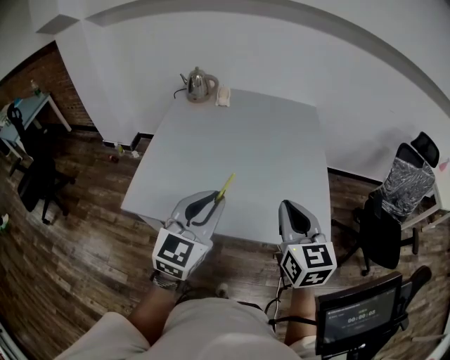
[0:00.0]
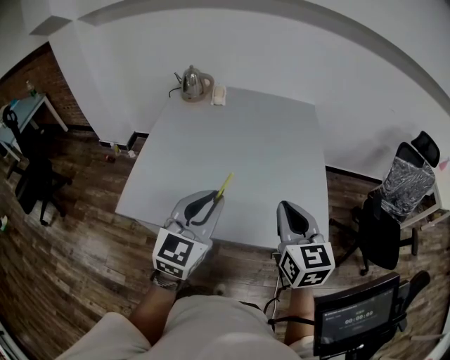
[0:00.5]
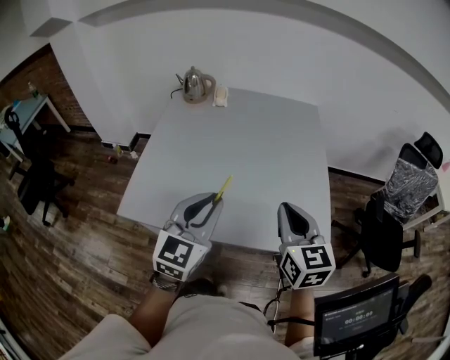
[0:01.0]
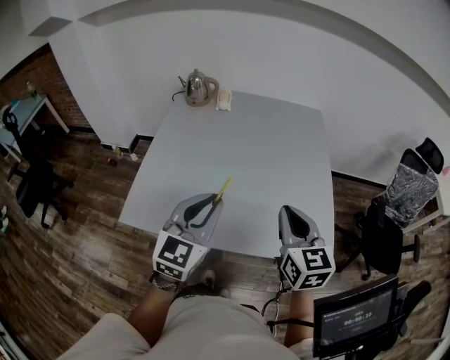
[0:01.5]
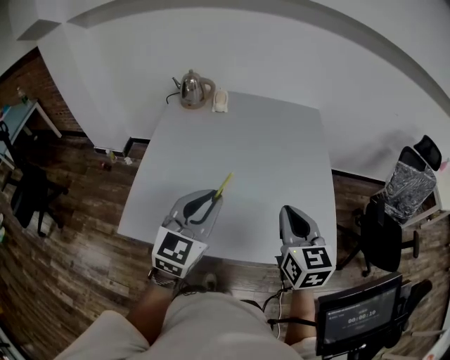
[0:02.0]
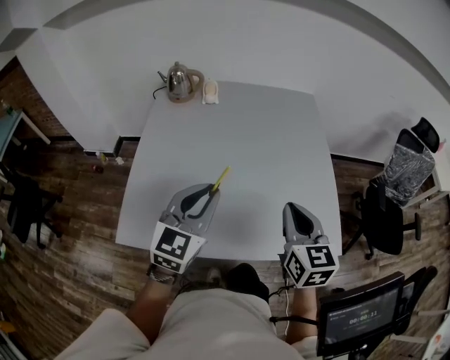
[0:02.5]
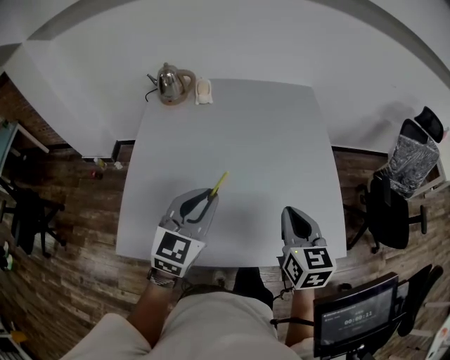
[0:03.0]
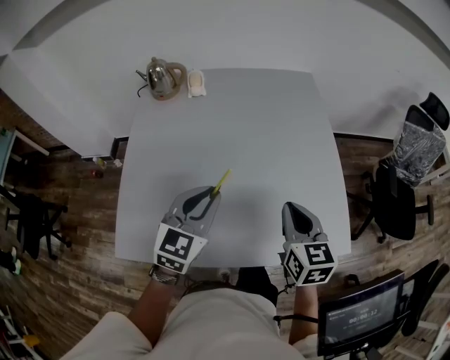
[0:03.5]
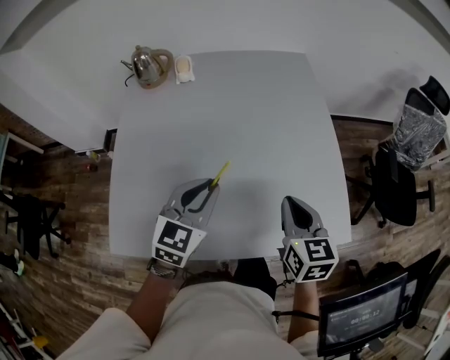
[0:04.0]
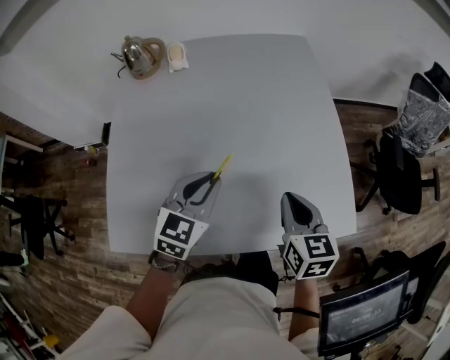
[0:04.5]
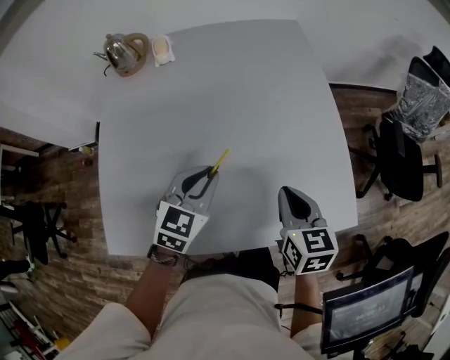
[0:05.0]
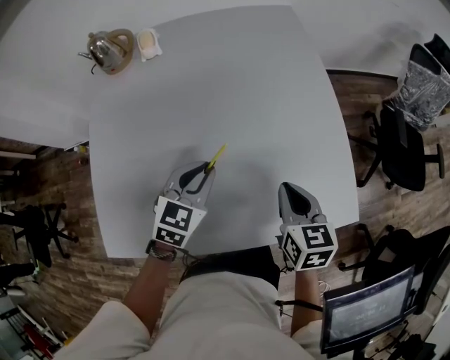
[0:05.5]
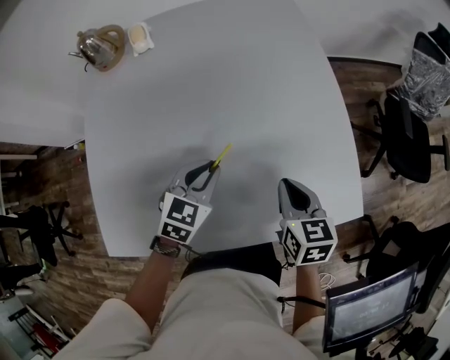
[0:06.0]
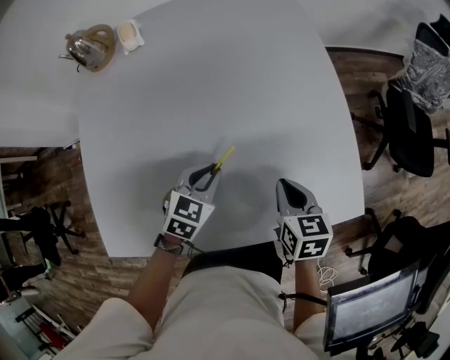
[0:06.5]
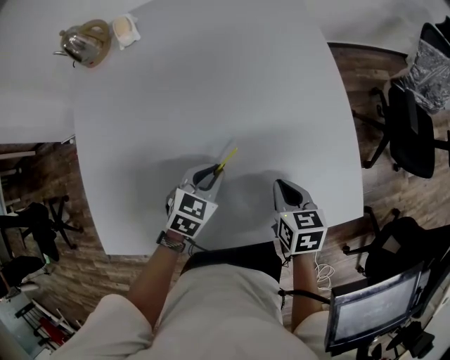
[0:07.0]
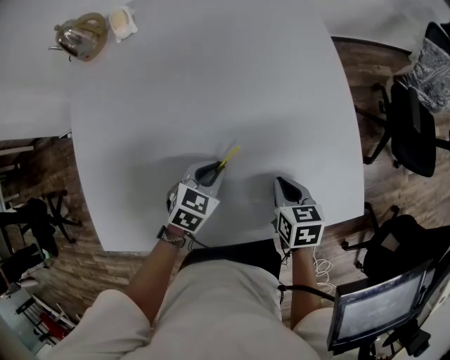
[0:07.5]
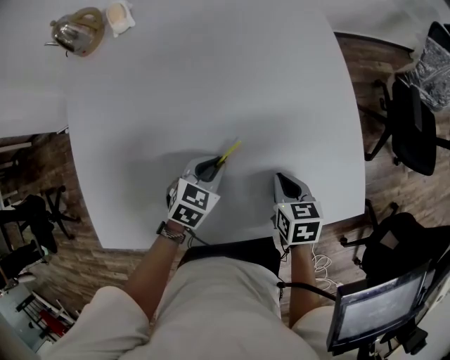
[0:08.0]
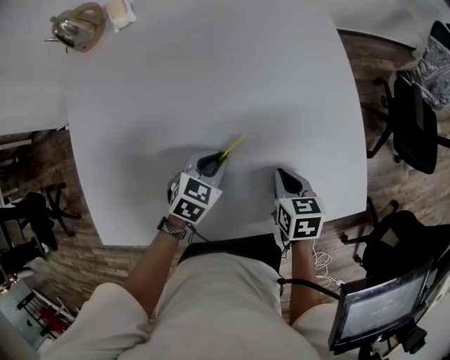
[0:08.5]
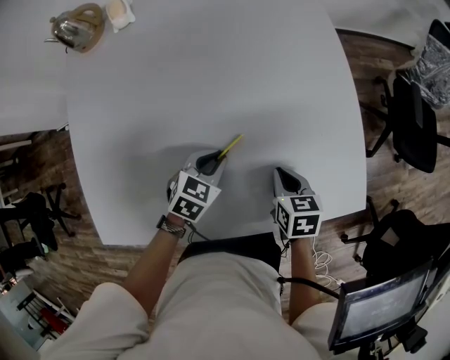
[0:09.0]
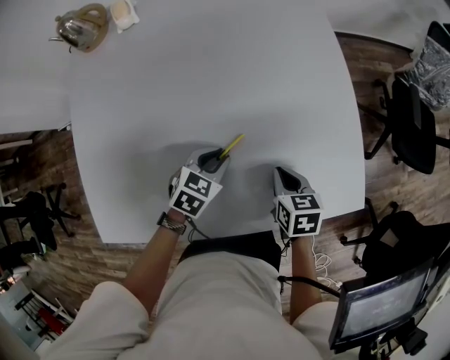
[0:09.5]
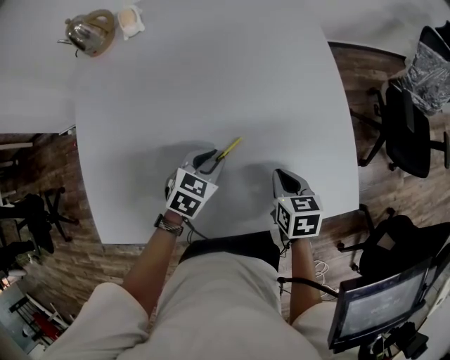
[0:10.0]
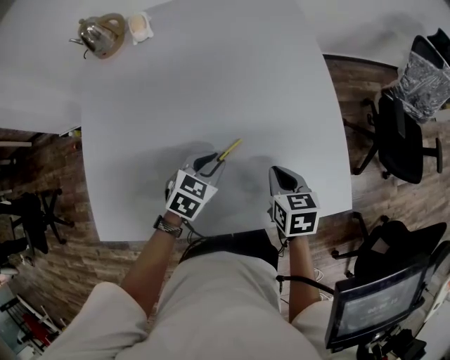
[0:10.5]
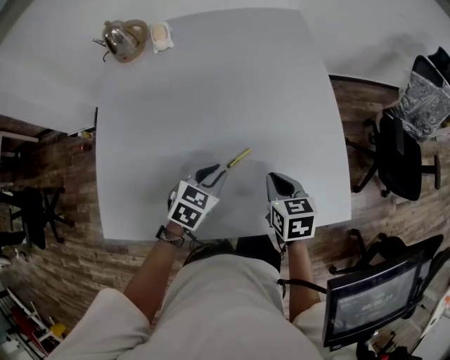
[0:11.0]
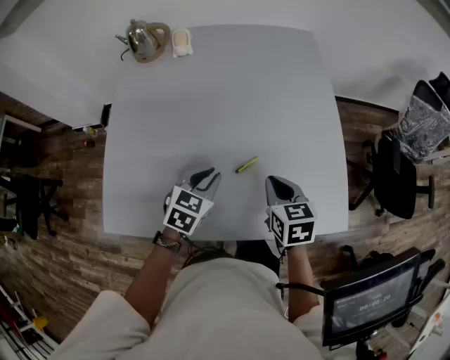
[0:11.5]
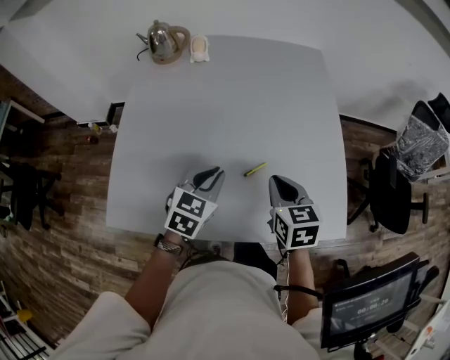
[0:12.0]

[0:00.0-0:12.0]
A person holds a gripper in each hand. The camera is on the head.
0:00.0 to 0:02.0: Both grippers move forward, some 10 cm.
0:02.0 to 0:04.0: The left gripper travels downward and forward by about 15 cm. The right gripper moves downward, about 10 cm.
0:04.0 to 0:06.0: The grippers both shift downward by roughly 10 cm.
0:06.0 to 0:08.0: The grippers both shift downward by approximately 10 cm.
0:08.0 to 0:10.0: There are only small adjustments of the grippers.
0:10.0 to 0:12.0: The grippers both shift upward and to the left by approximately 15 cm. The right gripper swivels approximately 20 degrees. Meanwhile the left gripper changes its angle by roughly 20 degrees.

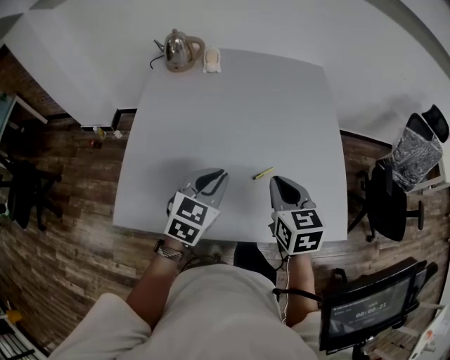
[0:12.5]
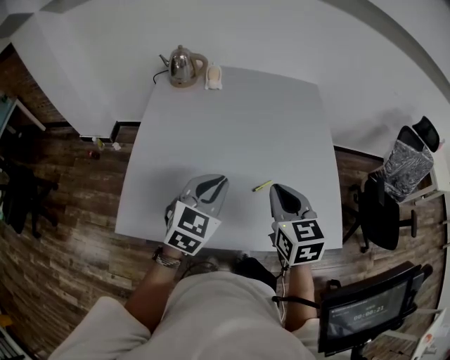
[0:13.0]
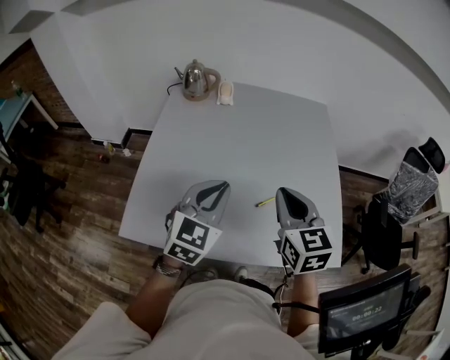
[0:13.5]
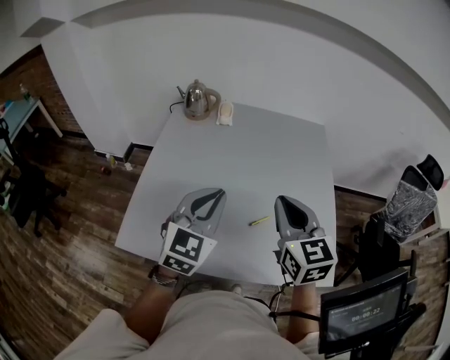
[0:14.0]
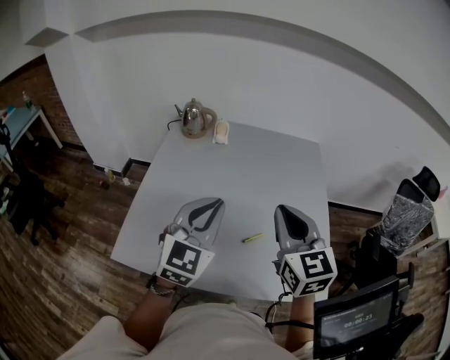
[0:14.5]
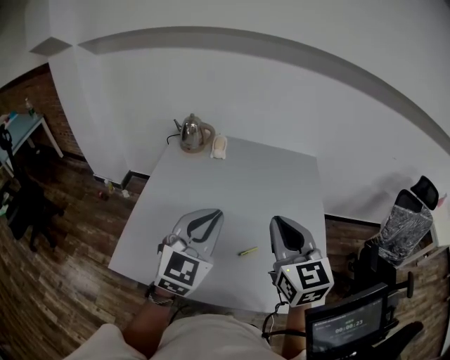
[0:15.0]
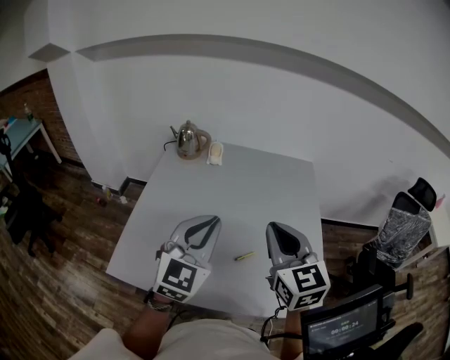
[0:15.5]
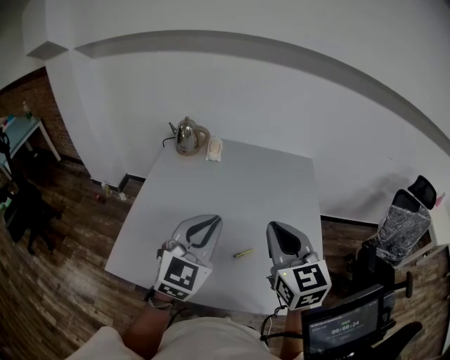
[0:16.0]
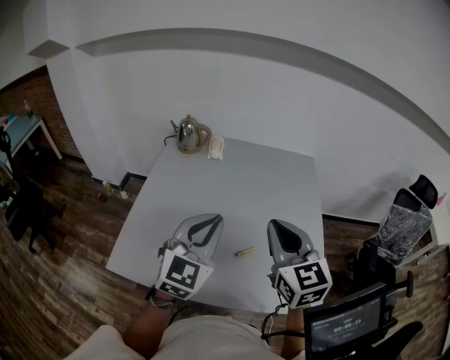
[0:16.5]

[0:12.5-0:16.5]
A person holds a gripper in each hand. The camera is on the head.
0:12.5 to 0:14.5: The grippers both shift upward by approximately 15 cm. The right gripper swivels roughly 20 degrees. Meanwhile the left gripper swivels some 30 degrees.
0:14.5 to 0:16.5: There are only small adjustments of the grippers.

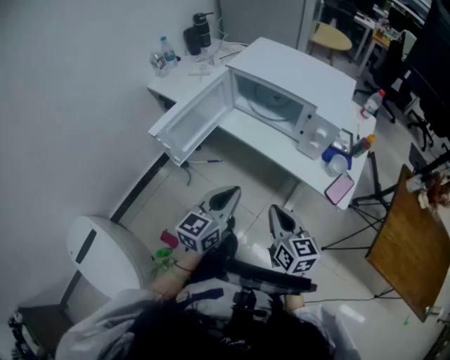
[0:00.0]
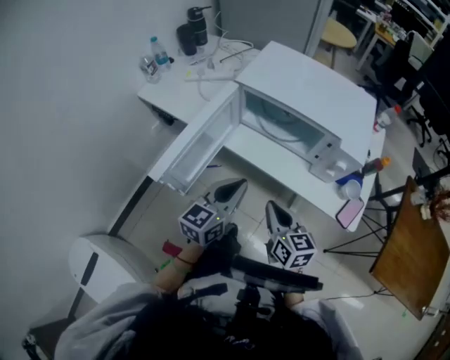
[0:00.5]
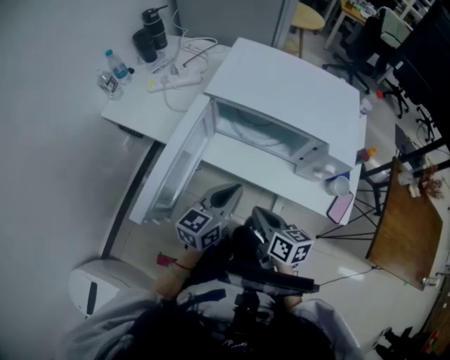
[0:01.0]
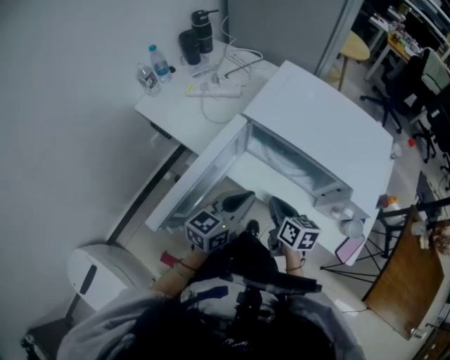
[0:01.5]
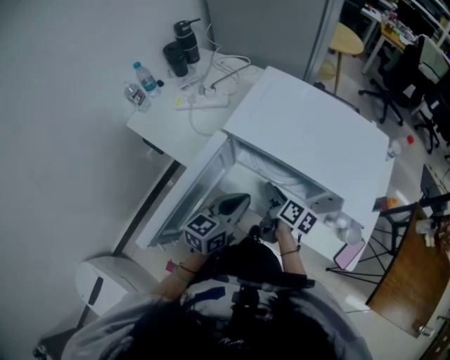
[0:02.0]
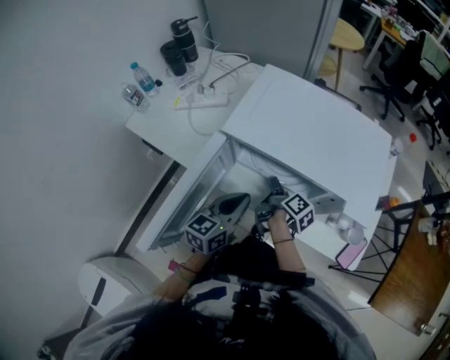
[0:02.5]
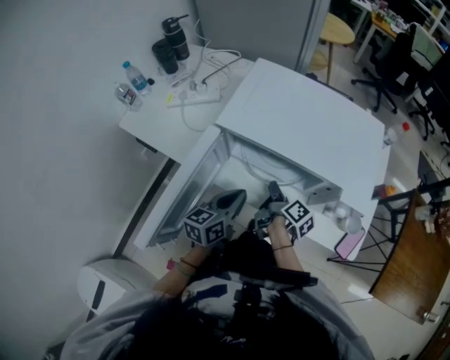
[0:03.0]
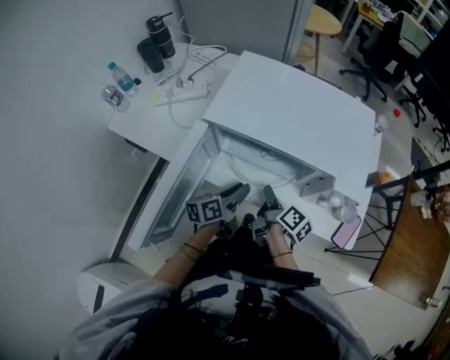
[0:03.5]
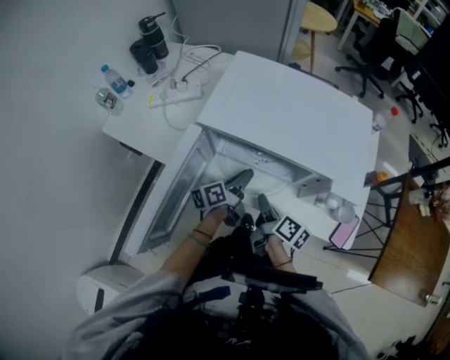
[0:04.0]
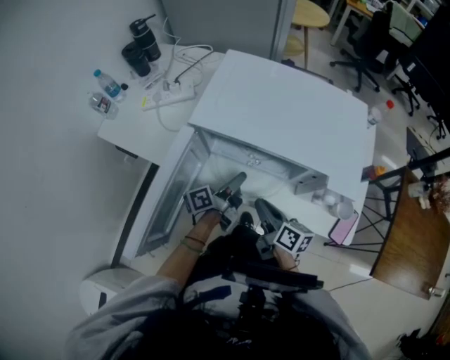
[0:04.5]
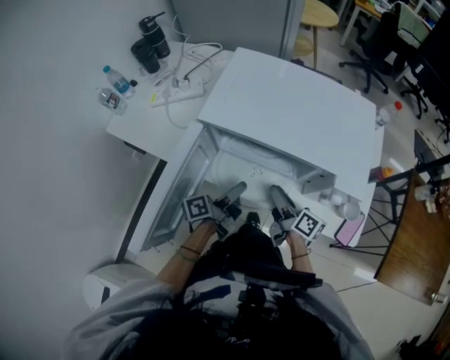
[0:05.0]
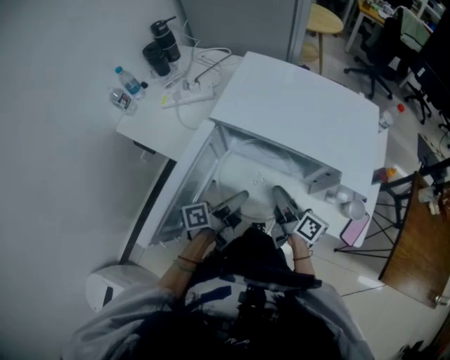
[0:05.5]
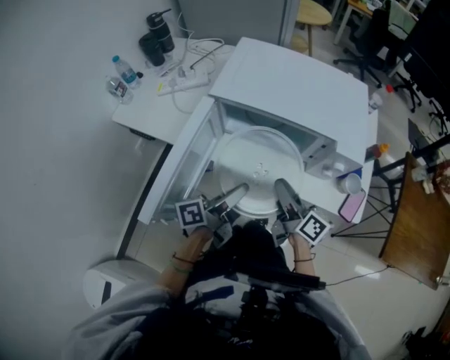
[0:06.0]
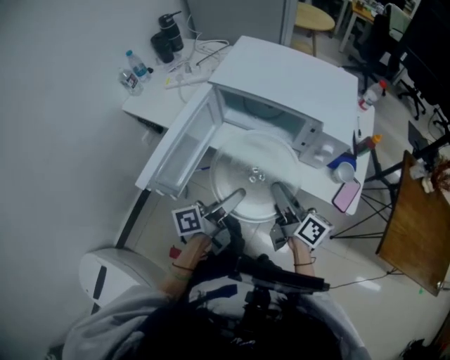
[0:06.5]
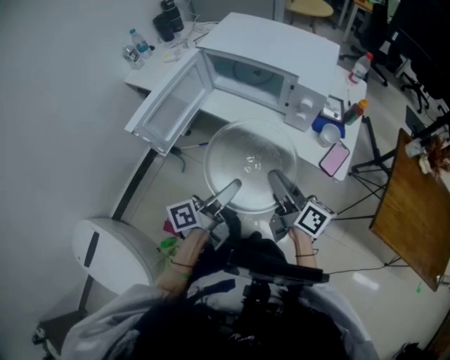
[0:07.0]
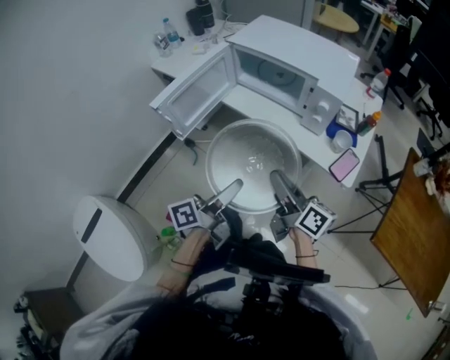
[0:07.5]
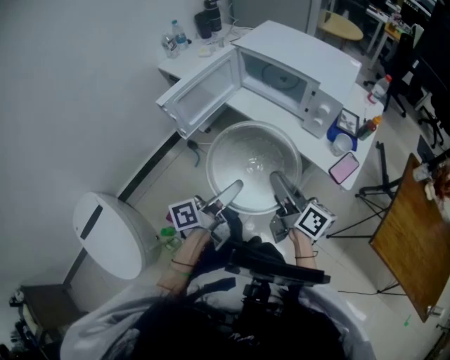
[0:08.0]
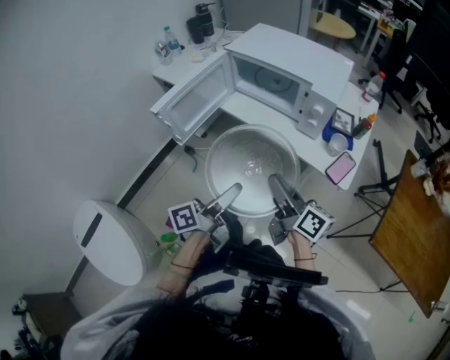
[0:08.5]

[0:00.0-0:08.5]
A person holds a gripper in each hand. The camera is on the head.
0:00.0 to 0:02.0: The grippers both shift forward by about 35 cm. The right gripper rolls clockwise, seen from behind, by approximately 40 degrees, and opens its fingers.
0:02.0 to 0:04.0: The right gripper moves backward, approximately 5 cm, and closes up. The left gripper is displaced downward and forward by approximately 15 cm, rolls counterclockwise, seen from behind, by some 40 degrees, and opens.
0:04.0 to 0:06.5: The left gripper shifts approximately 30 cm backward and upward, and closes its fingers; the right gripper is displaced backward and upward by approximately 20 cm, swivels roughly 30 degrees, and opens, then closes again.
0:06.5 to 0:08.5: The two grippers go roughly 15 cm backward.

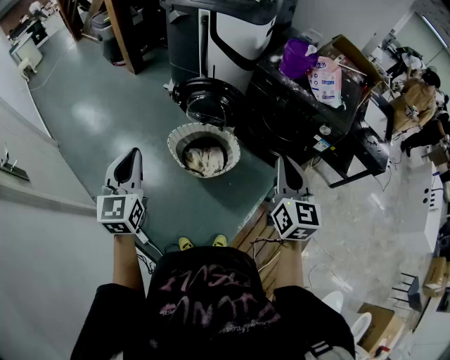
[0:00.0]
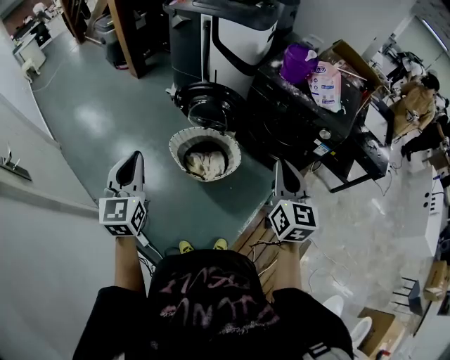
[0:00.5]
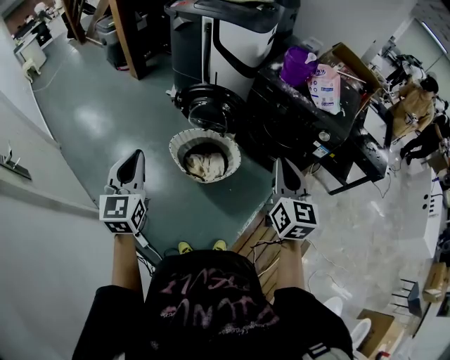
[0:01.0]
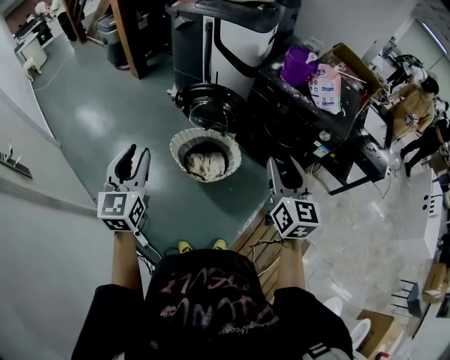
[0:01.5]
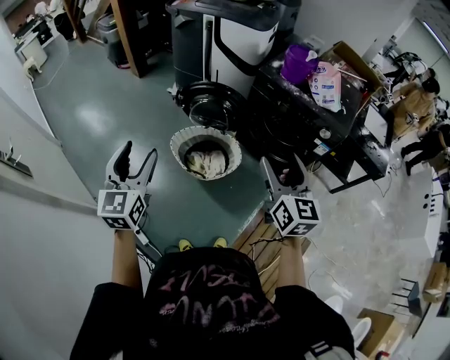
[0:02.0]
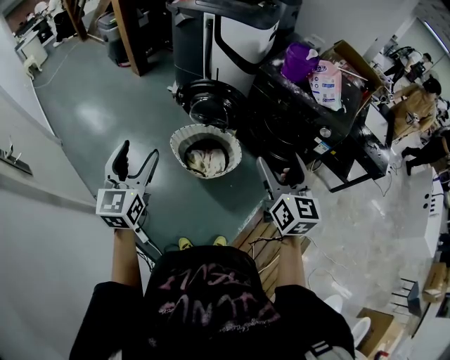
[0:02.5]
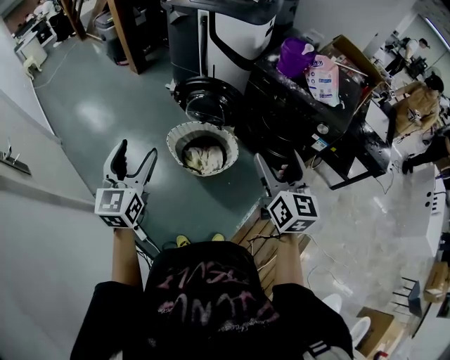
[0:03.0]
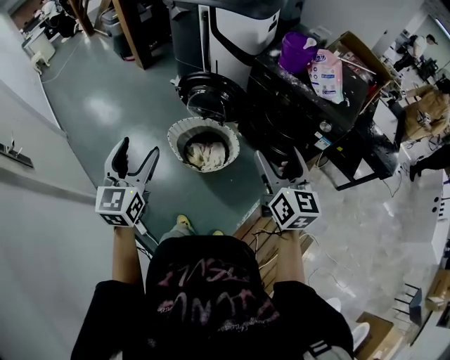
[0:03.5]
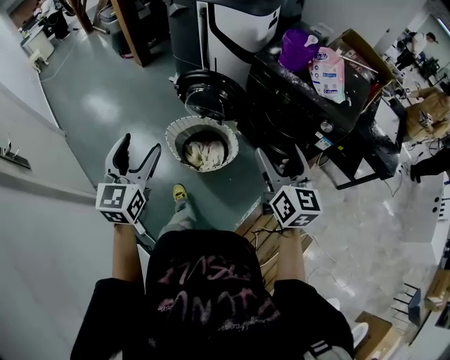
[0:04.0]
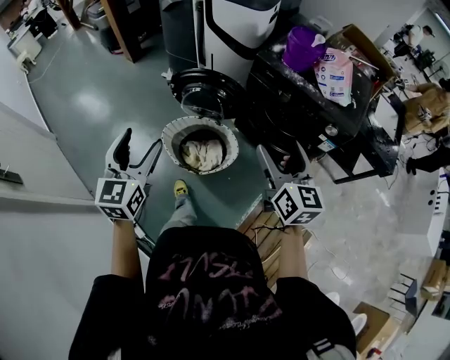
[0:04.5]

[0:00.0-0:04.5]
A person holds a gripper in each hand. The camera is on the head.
0:00.0 to 0:02.0: The right gripper opens; the left gripper opens up.
0:02.0 to 0:04.5: The left gripper travels forward and to the right by about 10 cm. Meanwhile the right gripper is displaced forward by some 10 cm.
